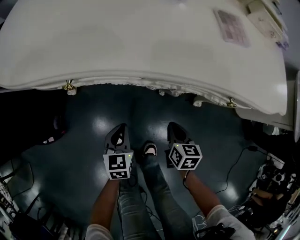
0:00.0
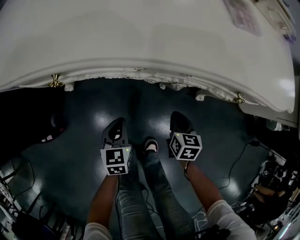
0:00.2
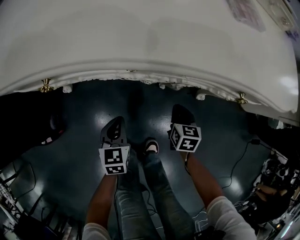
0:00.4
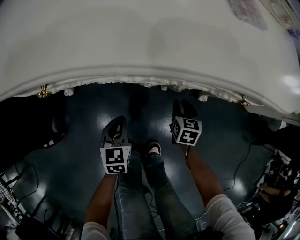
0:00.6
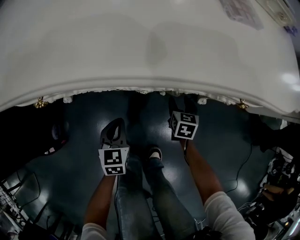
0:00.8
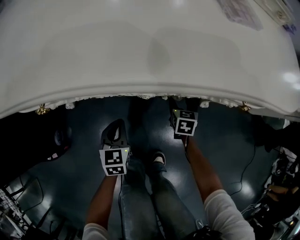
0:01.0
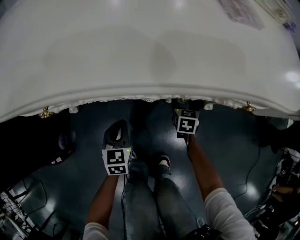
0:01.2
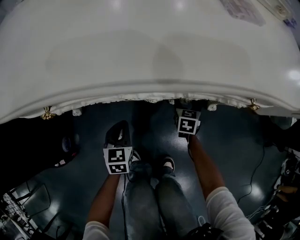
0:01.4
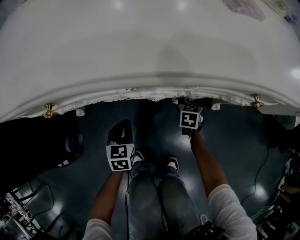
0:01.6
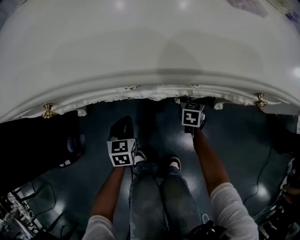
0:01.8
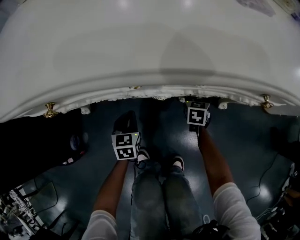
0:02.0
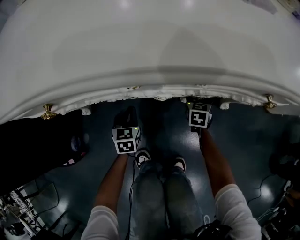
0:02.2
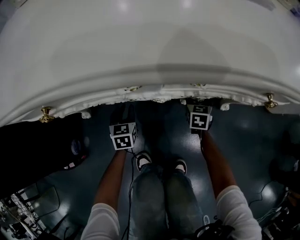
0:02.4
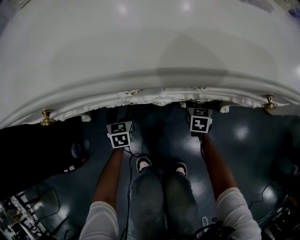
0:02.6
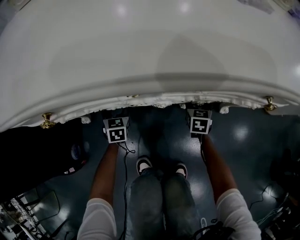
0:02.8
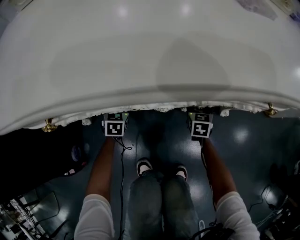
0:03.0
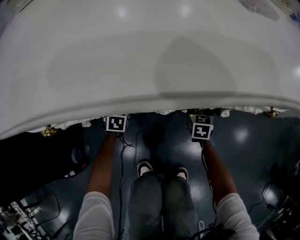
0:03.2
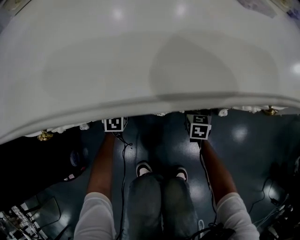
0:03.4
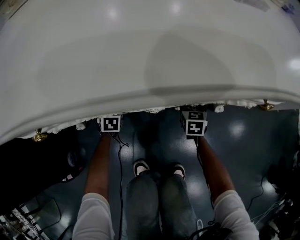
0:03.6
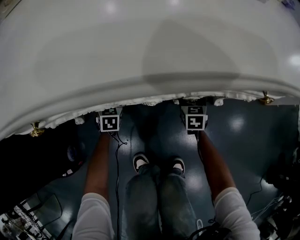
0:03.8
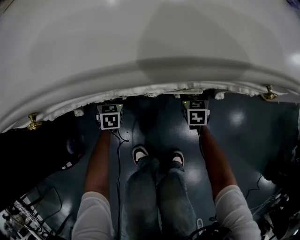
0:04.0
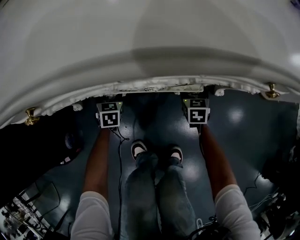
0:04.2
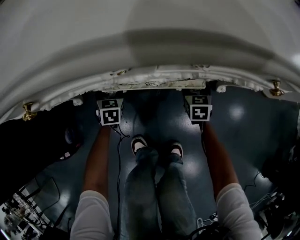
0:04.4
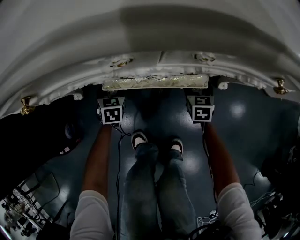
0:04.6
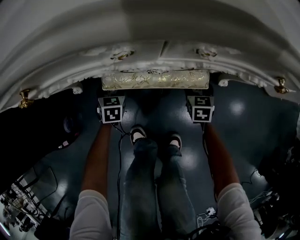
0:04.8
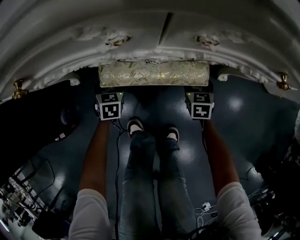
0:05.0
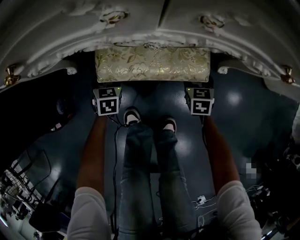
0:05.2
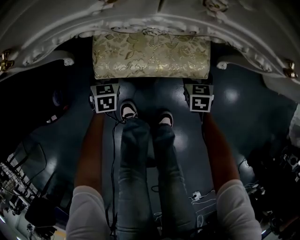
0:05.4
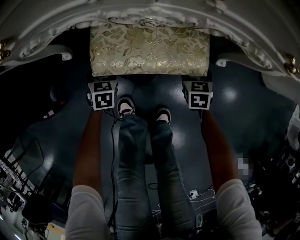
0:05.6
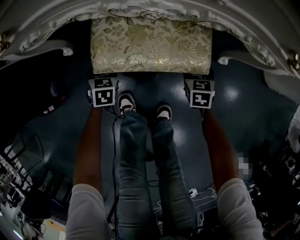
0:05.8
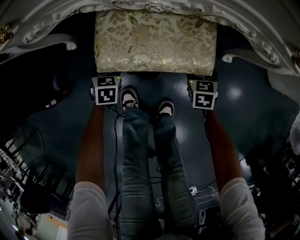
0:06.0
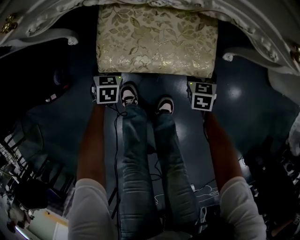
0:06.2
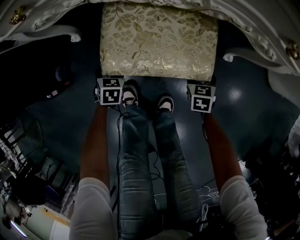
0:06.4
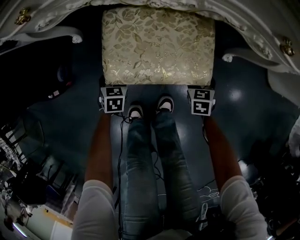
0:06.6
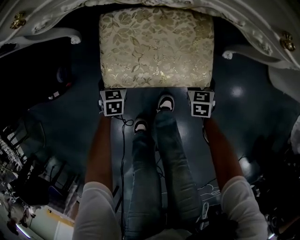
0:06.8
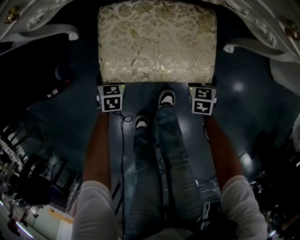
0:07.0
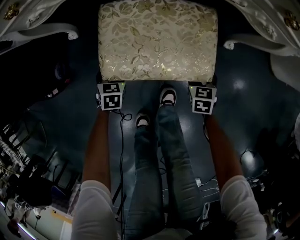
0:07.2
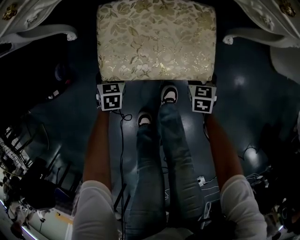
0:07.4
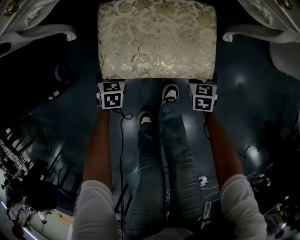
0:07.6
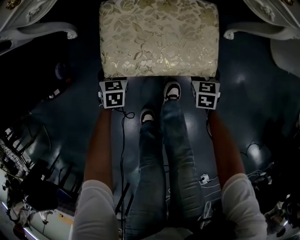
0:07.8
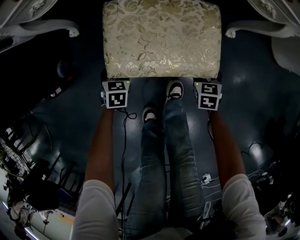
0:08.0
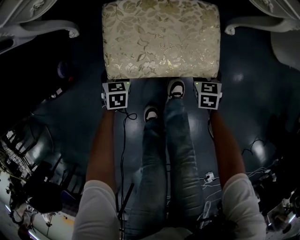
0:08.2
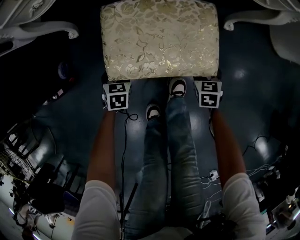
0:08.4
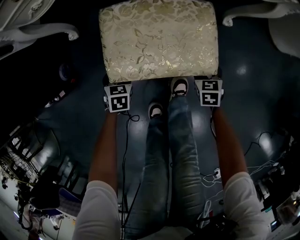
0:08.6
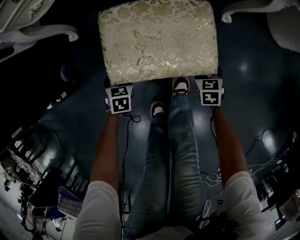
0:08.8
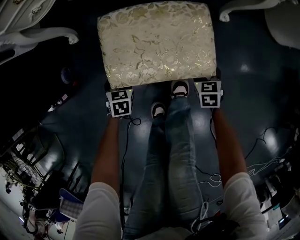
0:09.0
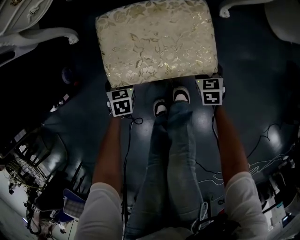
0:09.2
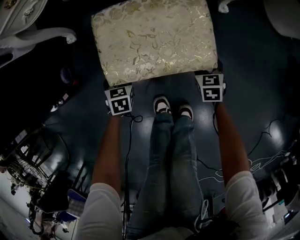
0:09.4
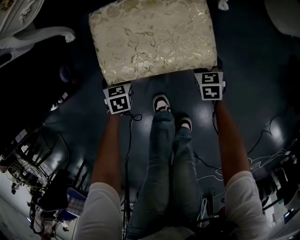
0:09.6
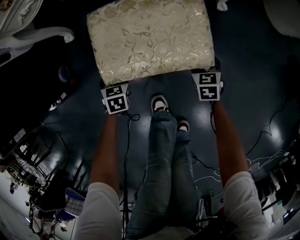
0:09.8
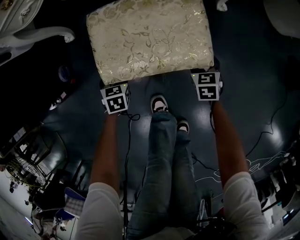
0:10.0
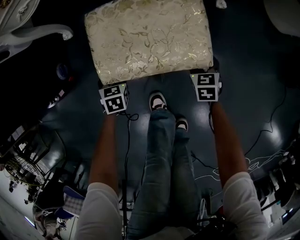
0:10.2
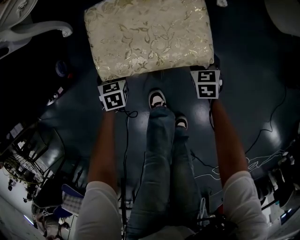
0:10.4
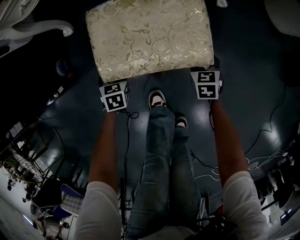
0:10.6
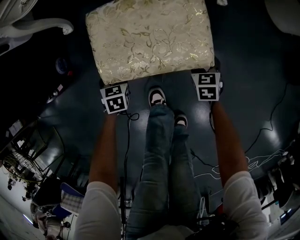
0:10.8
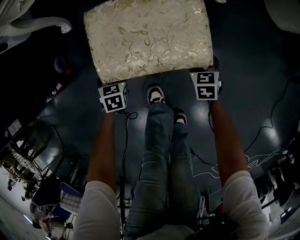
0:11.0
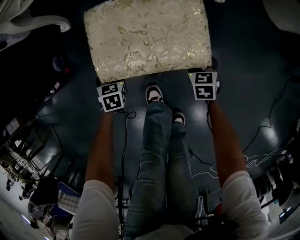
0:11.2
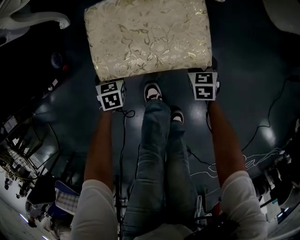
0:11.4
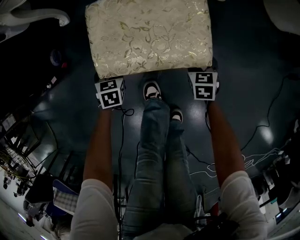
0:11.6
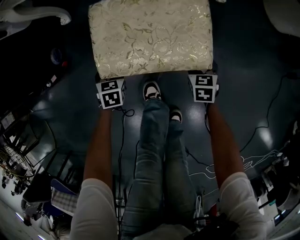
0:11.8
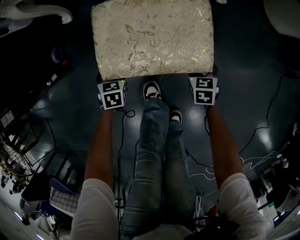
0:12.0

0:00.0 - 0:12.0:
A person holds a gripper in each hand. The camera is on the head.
0:00.0 - 0:01.6: The left gripper travels downward and forward by some 10 cm. The right gripper is displaced downward and forward by some 20 cm, rotates roughly 20 degrees, and opens up.
0:01.6 - 0:03.0: The left gripper travels forward, downward and to the left by some 15 cm, and opens its fingers.
0:03.0 - 0:04.4: The grippers make only small movements.
0:04.4 - 0:06.0: Both grippers travel together backward, approximately 10 cm.
0:06.0 - 0:07.6: Both grippers stay put.
0:07.6 - 0:12.0: Both grippers stay put.

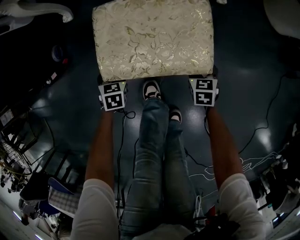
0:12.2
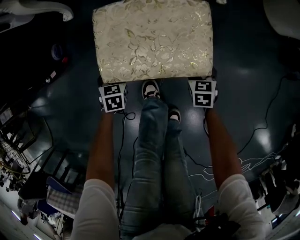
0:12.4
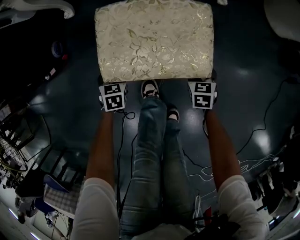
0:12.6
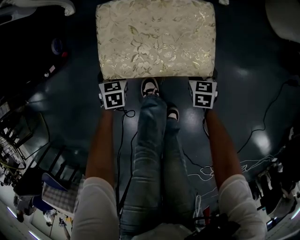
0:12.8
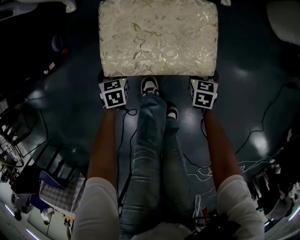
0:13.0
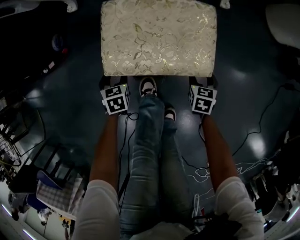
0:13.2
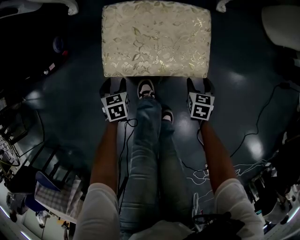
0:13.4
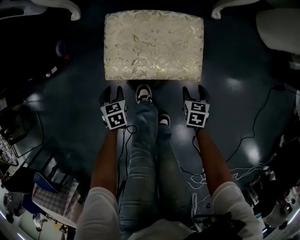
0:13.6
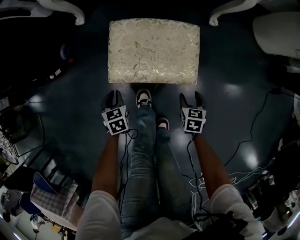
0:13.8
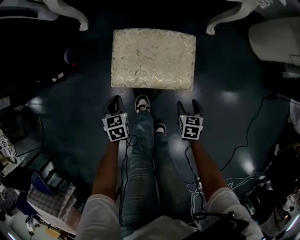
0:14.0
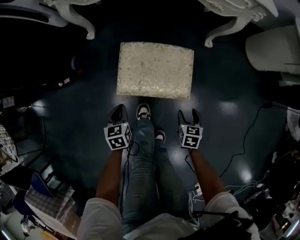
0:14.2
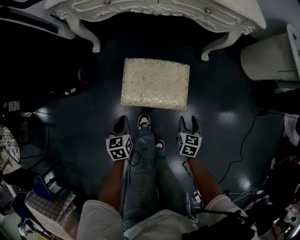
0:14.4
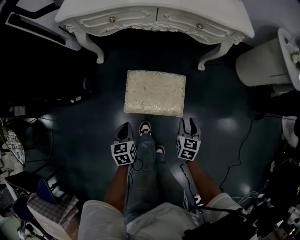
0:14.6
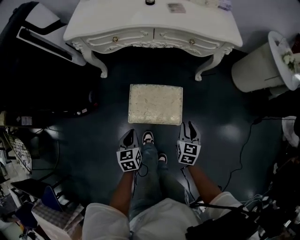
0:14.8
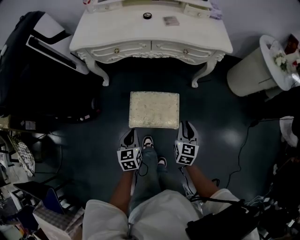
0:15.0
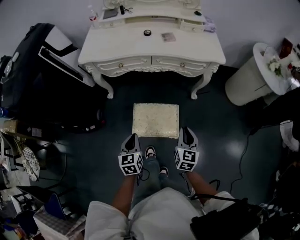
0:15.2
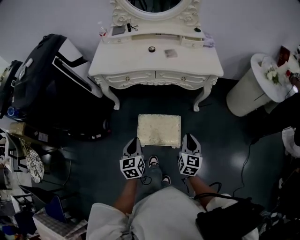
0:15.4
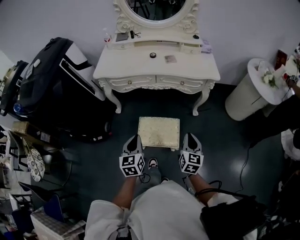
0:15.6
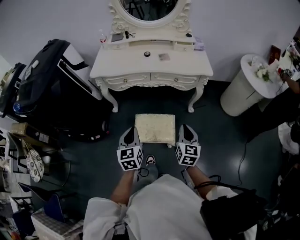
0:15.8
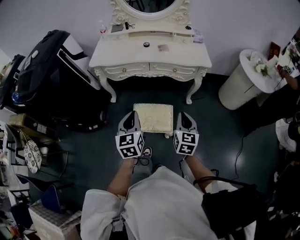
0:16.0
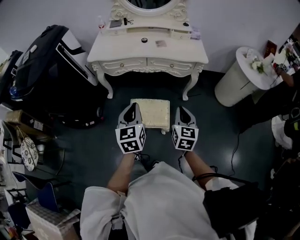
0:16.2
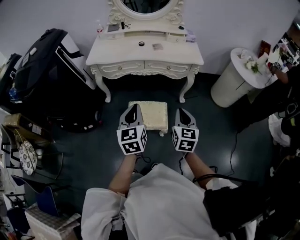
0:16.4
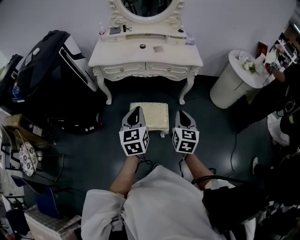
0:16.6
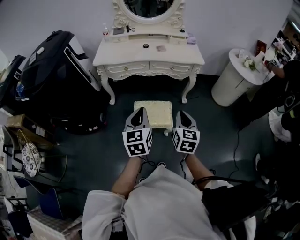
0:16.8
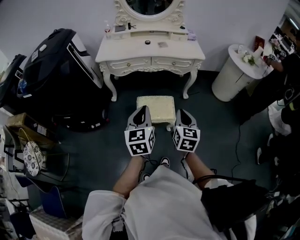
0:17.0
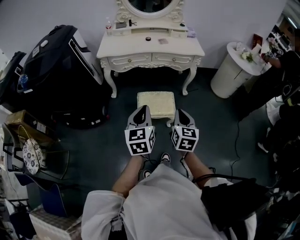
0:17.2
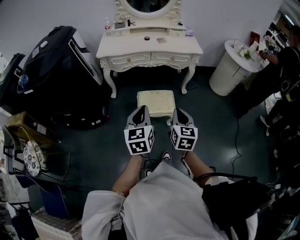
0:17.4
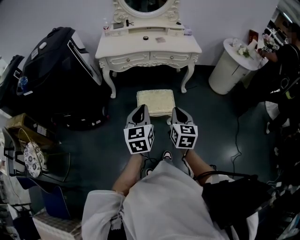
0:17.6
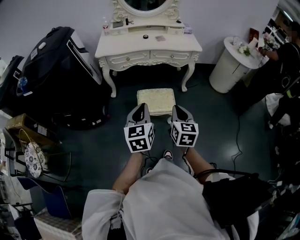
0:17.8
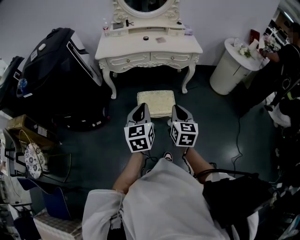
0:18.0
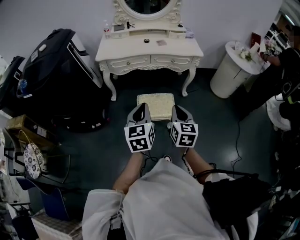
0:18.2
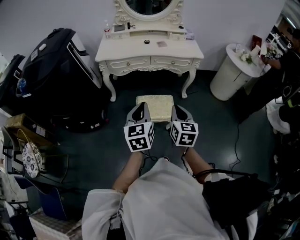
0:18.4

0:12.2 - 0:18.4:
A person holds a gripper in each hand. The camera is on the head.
0:12.2 - 0:13.8: The right gripper heads backward and upward, covering roughly 10 cm. The left gripper is displaced upward and backward by about 10 cm, and closes up.
0:13.8 - 0:15.4: Both grippers travel together upward, roughly 50 cm. The right gripper tips its fingers upward by roughly 40 degrees, and closes, while the left gripper points its fingers approximately 30 degrees further upward.
0:15.4 - 0:16.8: The left gripper moves upward and backward, some 25 cm; the right gripper travels backward and upward by approximately 20 cm.
0:16.8 - 0:18.4: The right gripper heads to the left and backward, covering about 10 cm.

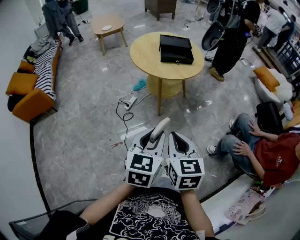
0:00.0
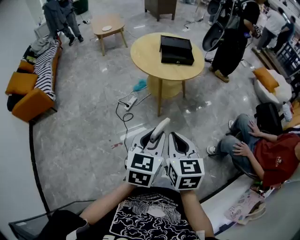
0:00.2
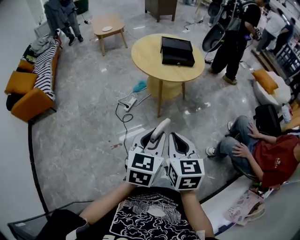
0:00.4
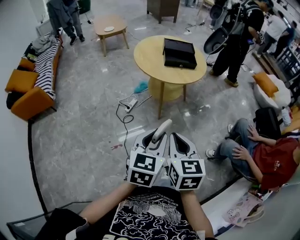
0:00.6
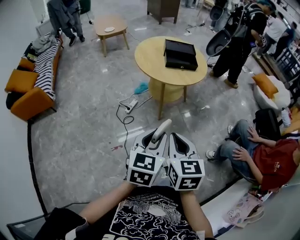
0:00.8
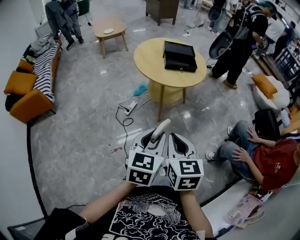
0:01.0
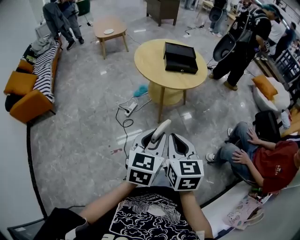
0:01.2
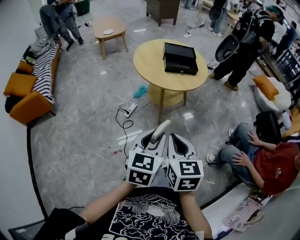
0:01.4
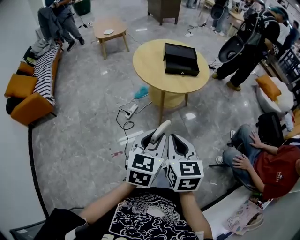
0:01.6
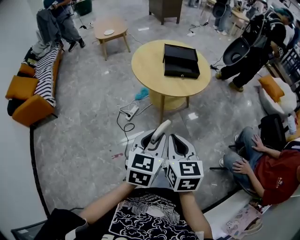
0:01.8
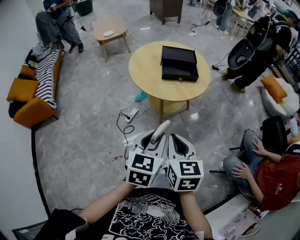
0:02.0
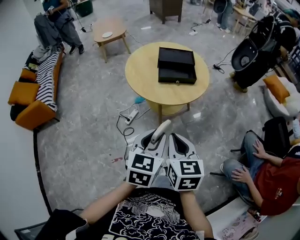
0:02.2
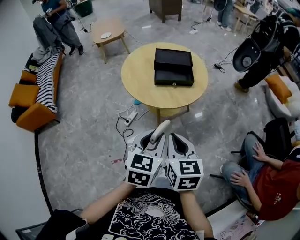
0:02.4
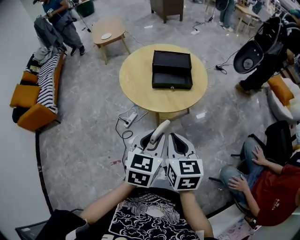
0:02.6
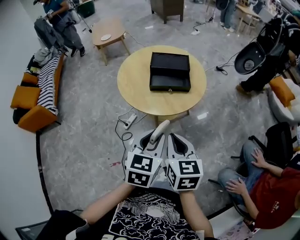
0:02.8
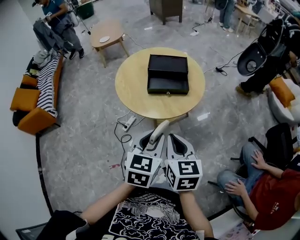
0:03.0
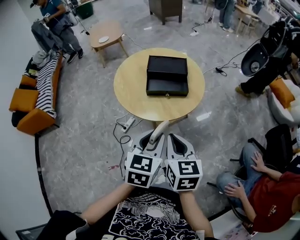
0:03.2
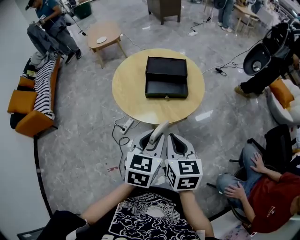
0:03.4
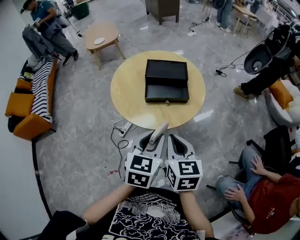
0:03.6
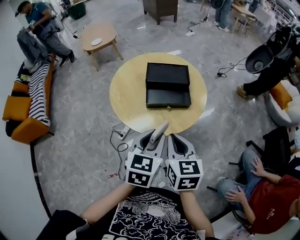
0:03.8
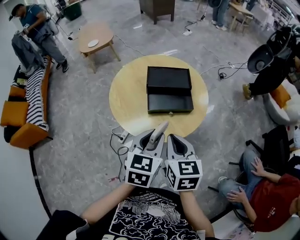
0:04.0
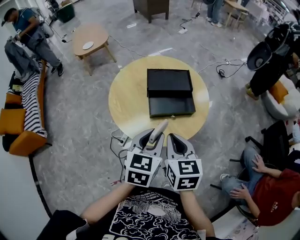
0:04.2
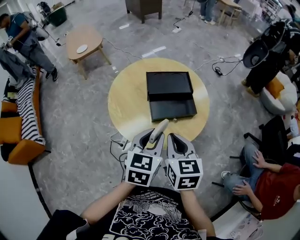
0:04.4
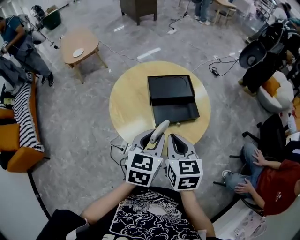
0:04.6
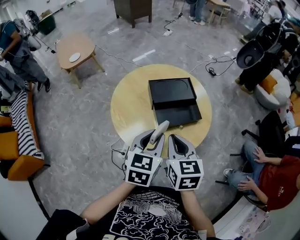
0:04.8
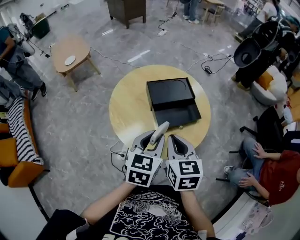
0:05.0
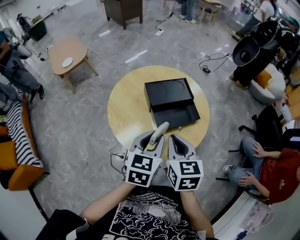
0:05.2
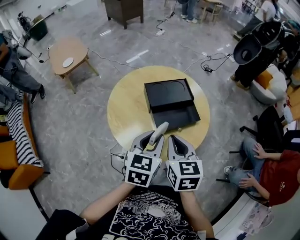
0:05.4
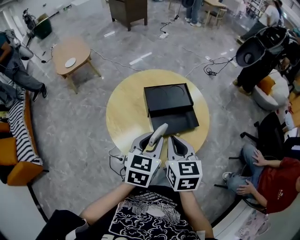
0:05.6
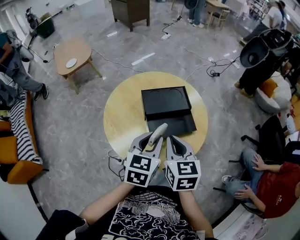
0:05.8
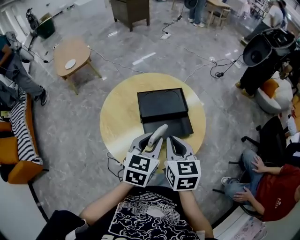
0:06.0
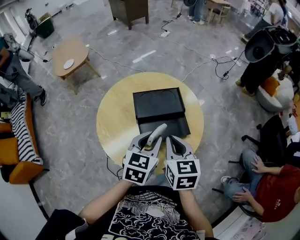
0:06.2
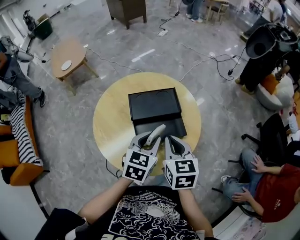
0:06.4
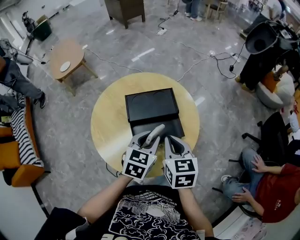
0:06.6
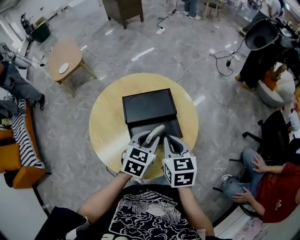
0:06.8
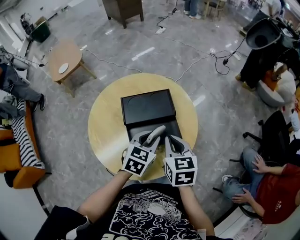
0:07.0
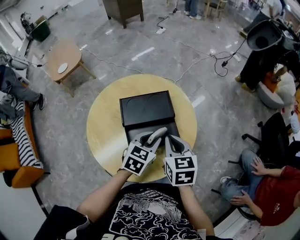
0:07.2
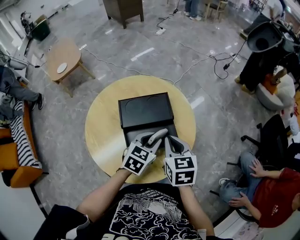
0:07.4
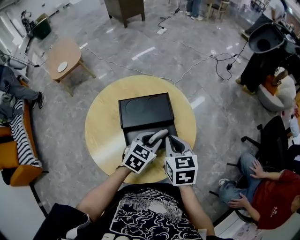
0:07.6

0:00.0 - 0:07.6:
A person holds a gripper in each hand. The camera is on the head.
0:00.0 - 0:01.6: Both grippers move forward, about 10 cm.
0:01.6 - 0:03.0: The two grippers go roughly 25 cm forward and to the right.
0:03.0 - 0:04.6: Both grippers move forward and to the left, roughly 25 cm.
0:04.6 - 0:06.0: Both grippers travel together forward, approximately 10 cm.
0:06.0 - 0:07.6: The right gripper shifts some 15 cm forward, to the right and downward. Meanwhile the left gripper is displaced downward, forward and to the right by some 15 cm.
